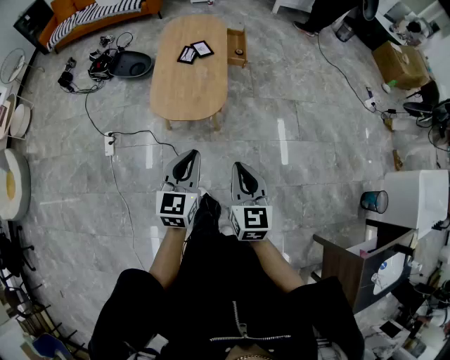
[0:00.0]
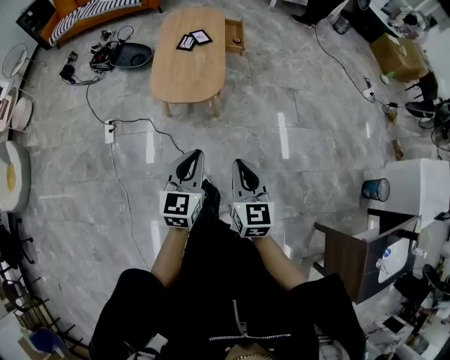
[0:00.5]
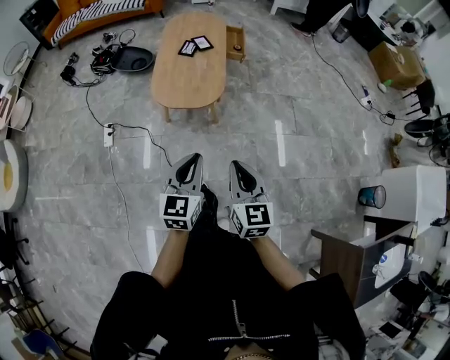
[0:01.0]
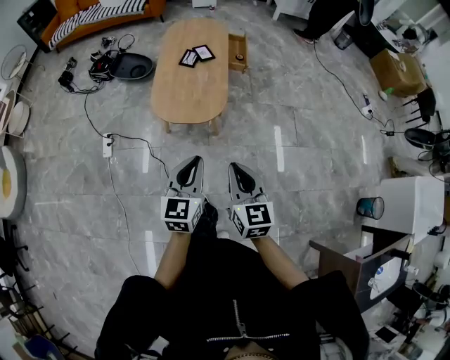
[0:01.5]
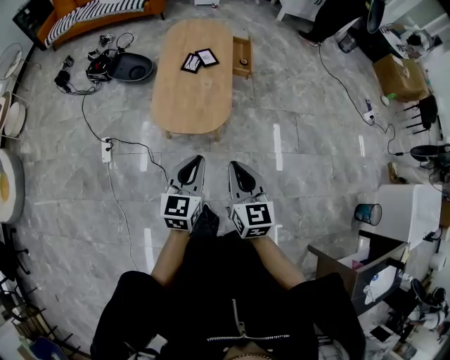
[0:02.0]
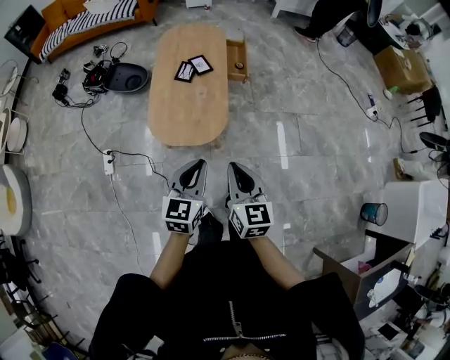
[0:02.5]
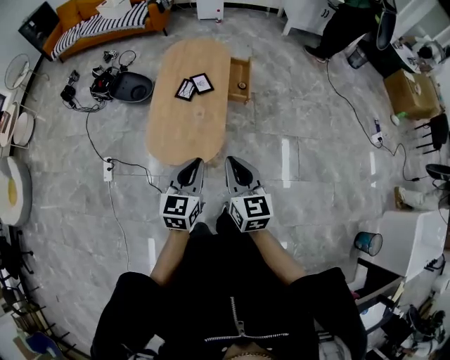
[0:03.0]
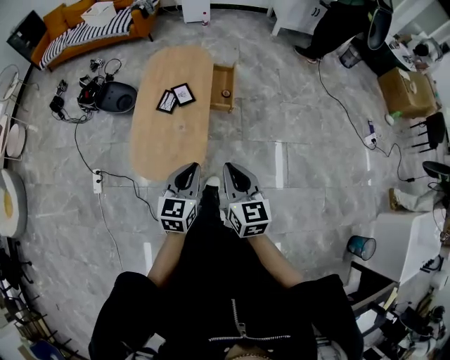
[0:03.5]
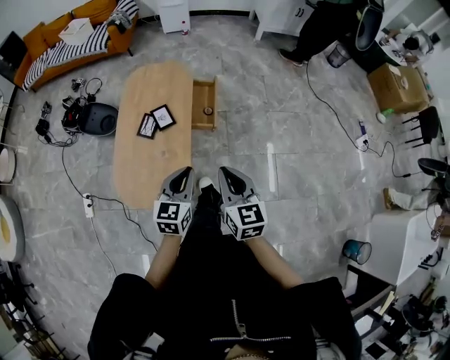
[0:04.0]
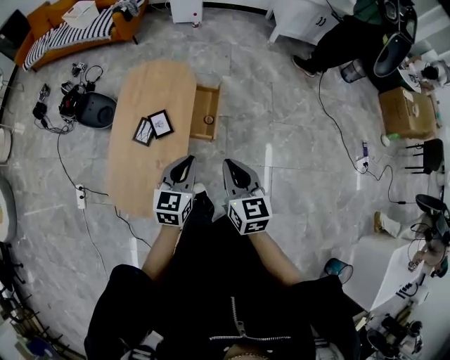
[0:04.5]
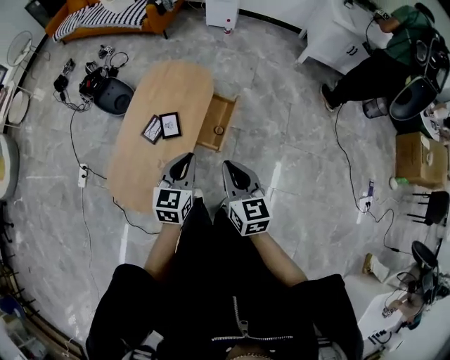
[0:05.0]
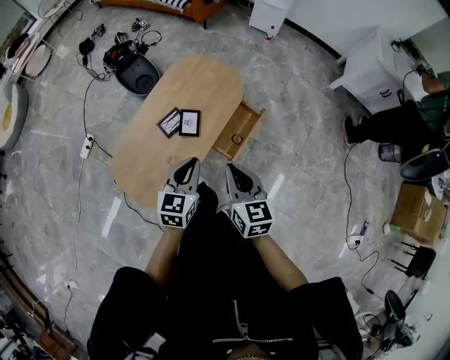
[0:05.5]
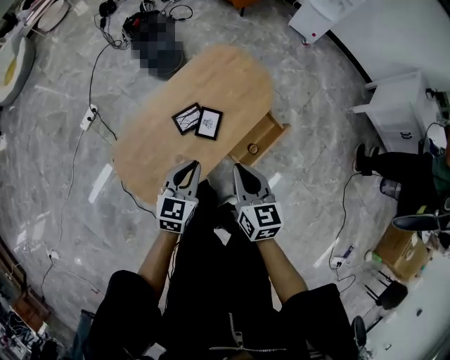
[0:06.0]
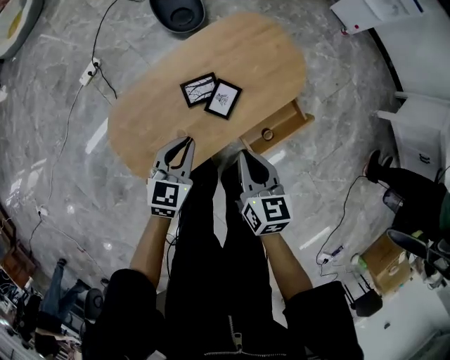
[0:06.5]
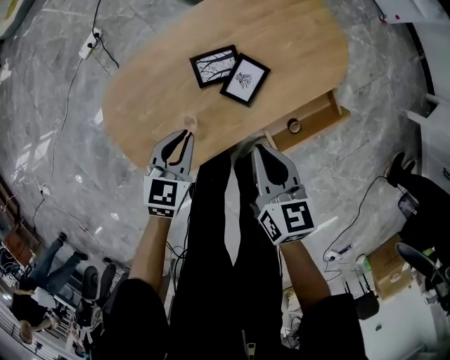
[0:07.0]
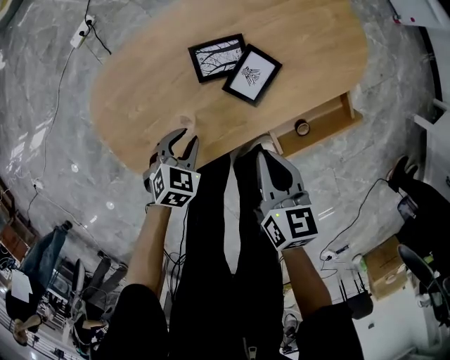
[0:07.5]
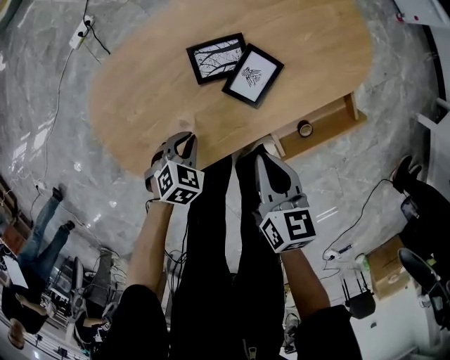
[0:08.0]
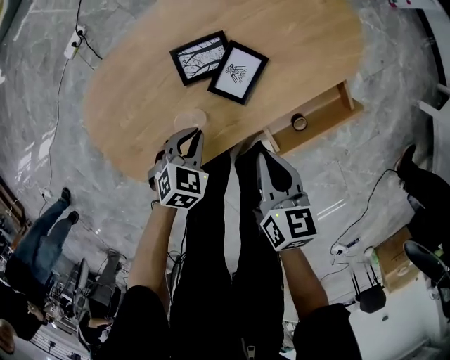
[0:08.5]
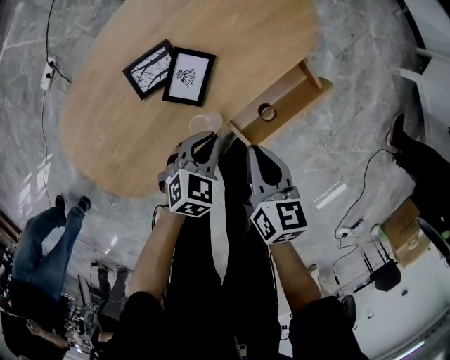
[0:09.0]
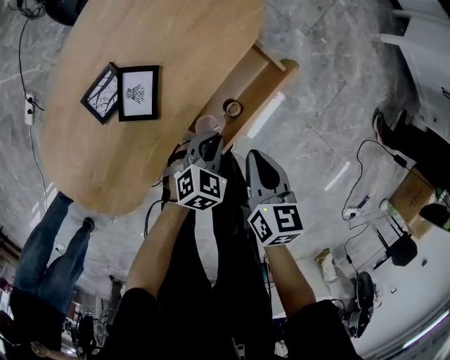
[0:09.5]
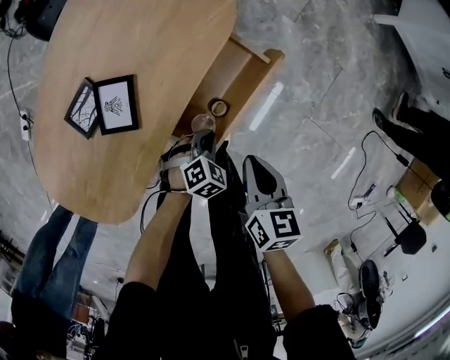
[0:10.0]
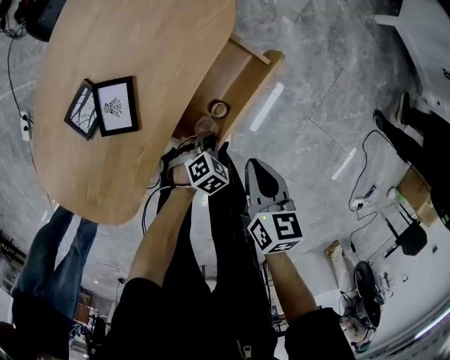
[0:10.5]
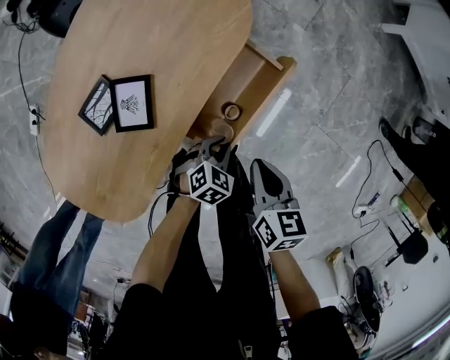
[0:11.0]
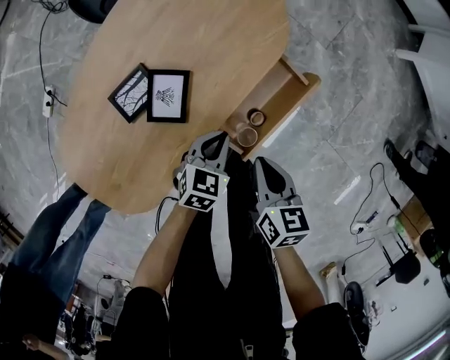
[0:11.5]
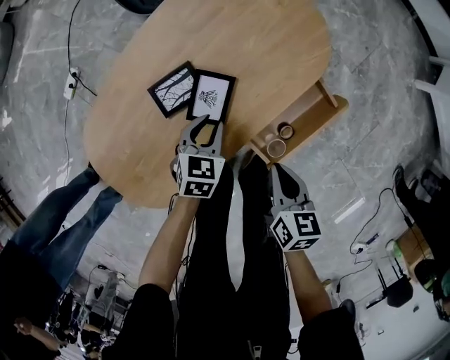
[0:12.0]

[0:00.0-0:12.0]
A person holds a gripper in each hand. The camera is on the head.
0:00.0 to 0:02.0: The right gripper heads forward and to the left, covering about 10 cm. The left gripper shifts about 10 cm forward.
0:02.0 to 0:04.0: Both grippers are carried forward and to the right, approximately 40 cm.
0:04.0 to 0:06.0: The left gripper changes place by approximately 30 cm, and changes its angle by roughly 40 degrees; the right gripper ends up roughly 35 cm from where it was, and swivels some 40 degrees.
0:06.0 to 0:08.0: The two grippers go about 30 cm downward. The right gripper swivels about 20 degrees. The left gripper tips its fingers downward by roughly 40 degrees.
0:08.0 to 0:10.0: The left gripper ends up some 35 cm from where it was, and rotates roughly 40 degrees. Meanwhile the right gripper changes place by some 25 cm, and rotates some 30 degrees.
0:10.0 to 0:12.0: The left gripper ends up approximately 25 cm from where it was, and changes its angle by some 50 degrees. The right gripper changes place by roughly 15 cm.

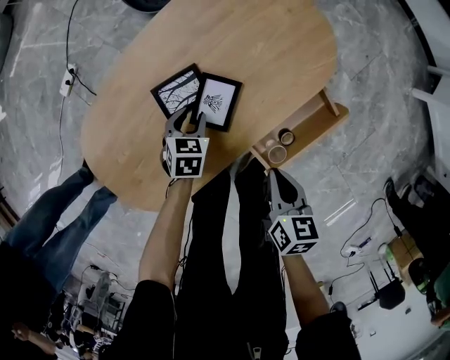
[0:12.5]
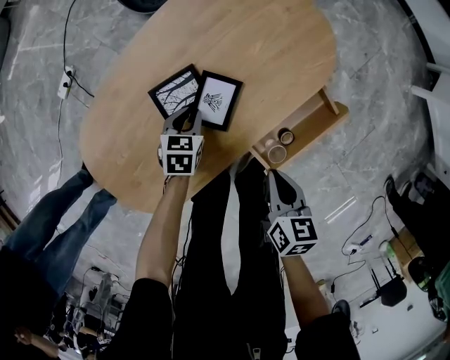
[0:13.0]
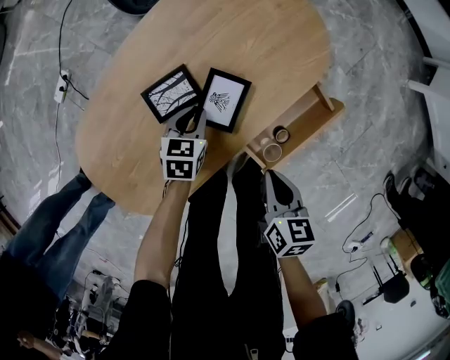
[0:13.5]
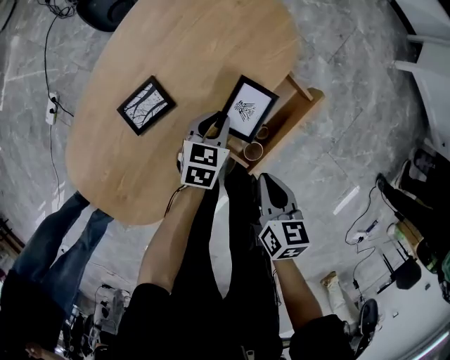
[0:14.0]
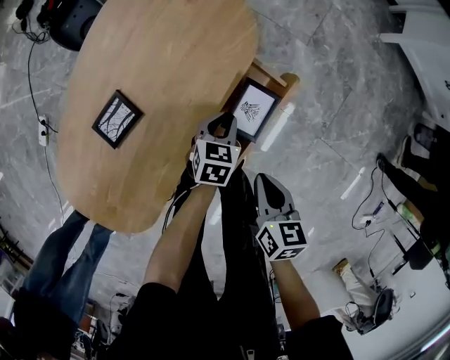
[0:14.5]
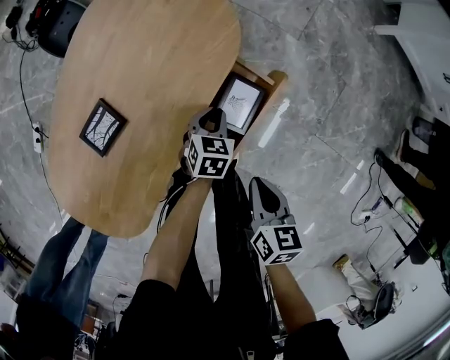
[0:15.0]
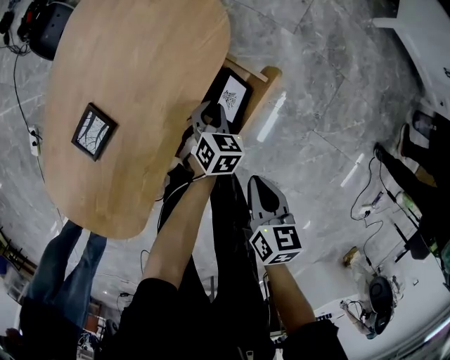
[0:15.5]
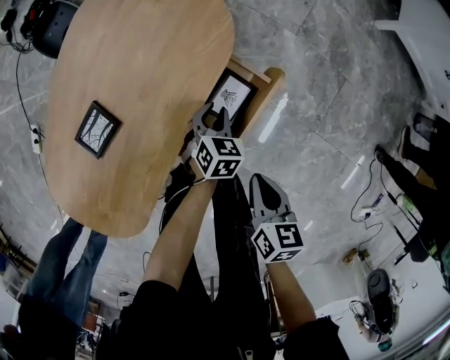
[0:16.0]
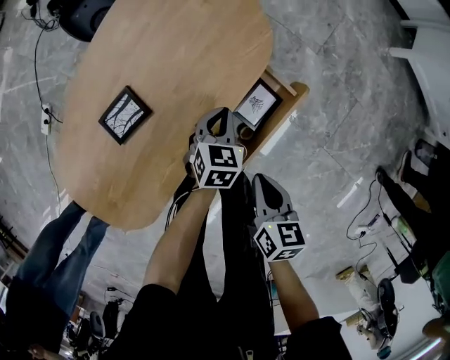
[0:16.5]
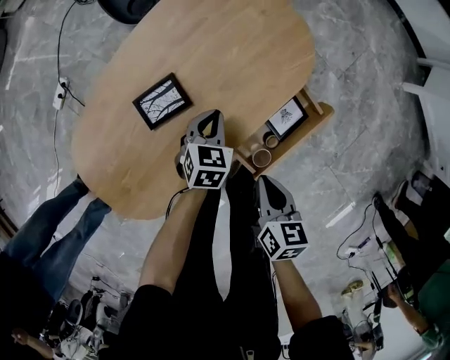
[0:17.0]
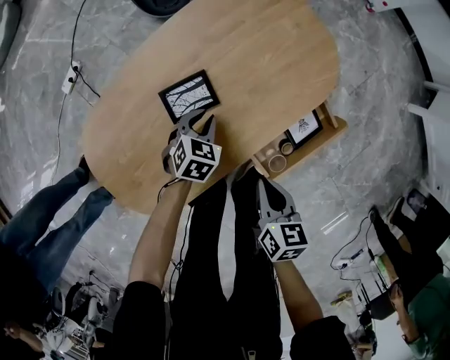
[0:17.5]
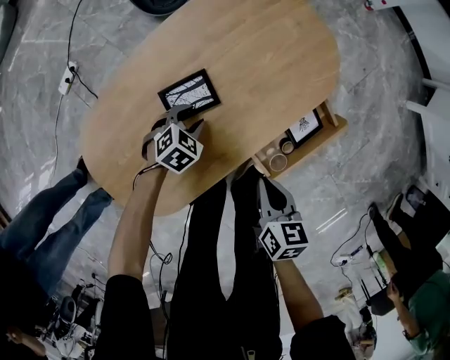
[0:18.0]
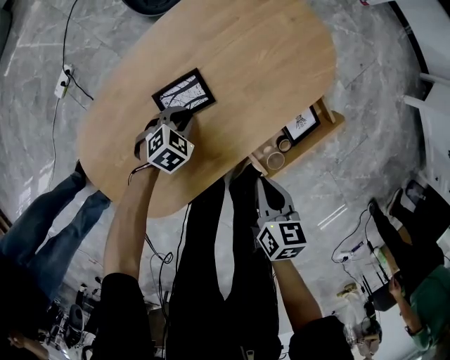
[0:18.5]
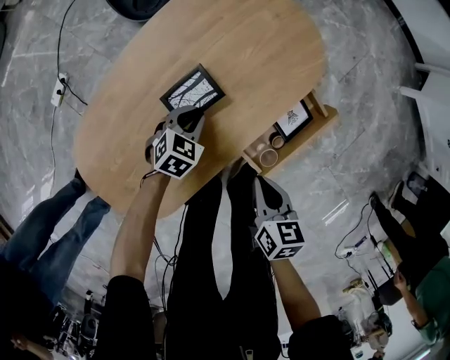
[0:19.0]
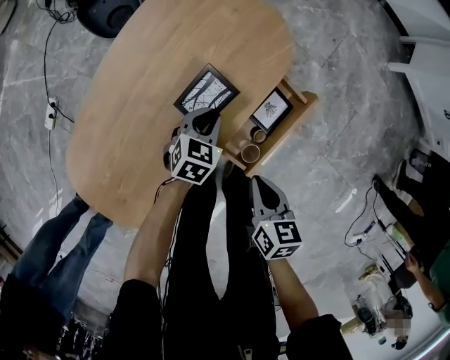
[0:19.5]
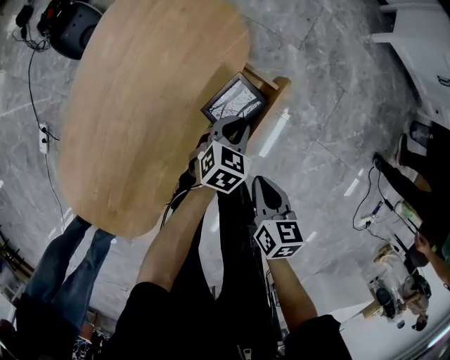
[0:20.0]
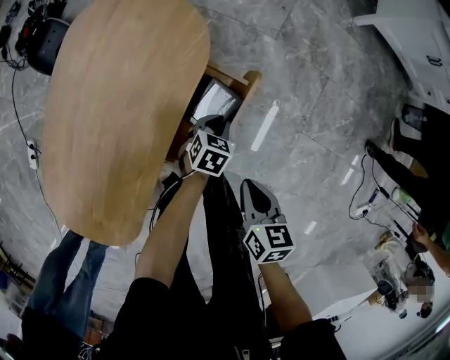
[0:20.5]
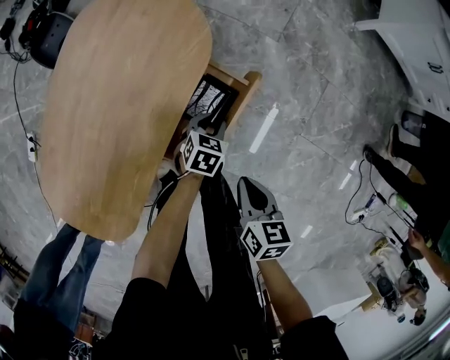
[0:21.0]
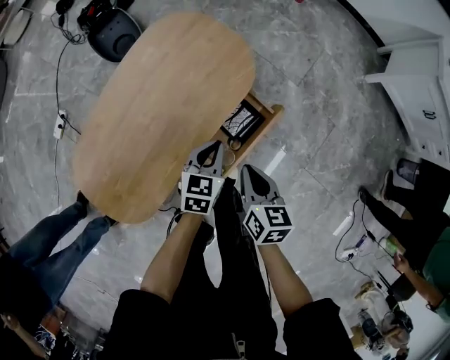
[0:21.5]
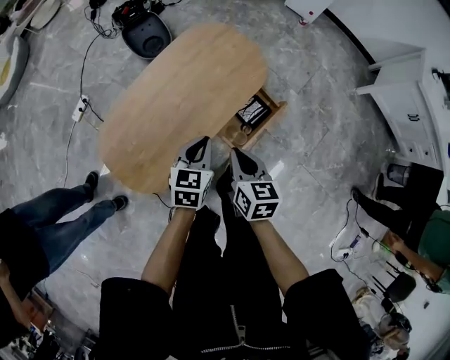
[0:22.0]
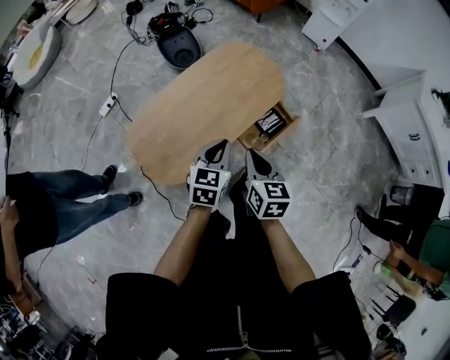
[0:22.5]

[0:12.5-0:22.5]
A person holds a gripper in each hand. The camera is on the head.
0:12.5 to 0:14.5: The left gripper shifts by approximately 30 cm, rotates approximately 30 degrees, and closes; the right gripper ends up some 10 cm from where it was.
0:14.5 to 0:16.5: The left gripper changes place by roughly 5 cm.
0:16.5 to 0:18.5: The right gripper moves to the left, about 15 cm. The left gripper moves to the left, about 25 cm, swivels roughly 20 degrees, and opens, then closes once more.
0:18.5 to 0:20.5: The left gripper travels upward and back again, roughly 5 cm each way. The right gripper shifts by some 20 cm, and changes its angle by some 20 degrees.
0:20.5 to 0:22.5: Both grippers move upward, about 40 cm. The right gripper swivels approximately 30 degrees. The left gripper turns by some 40 degrees.

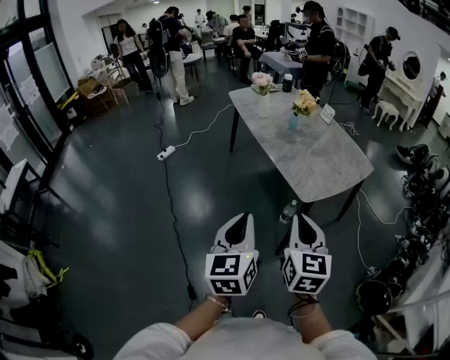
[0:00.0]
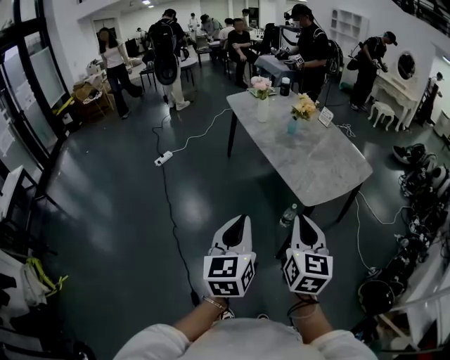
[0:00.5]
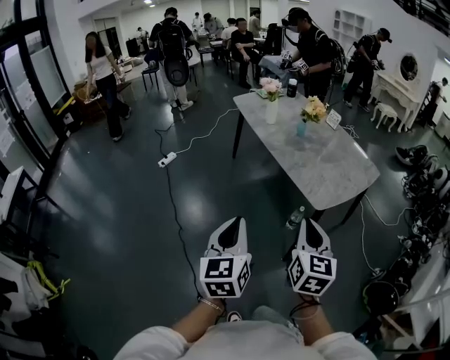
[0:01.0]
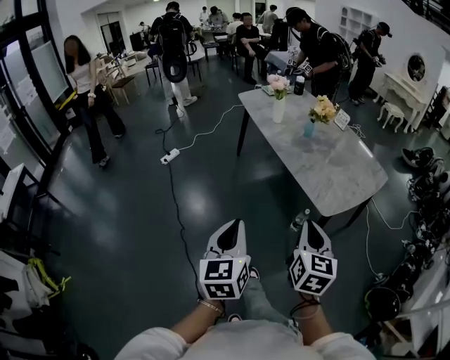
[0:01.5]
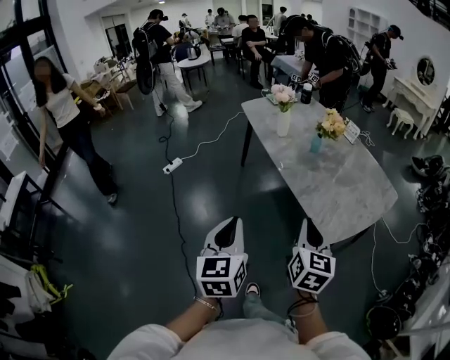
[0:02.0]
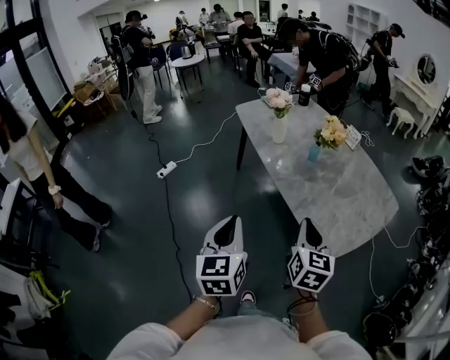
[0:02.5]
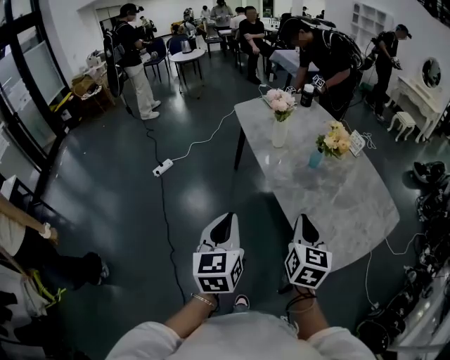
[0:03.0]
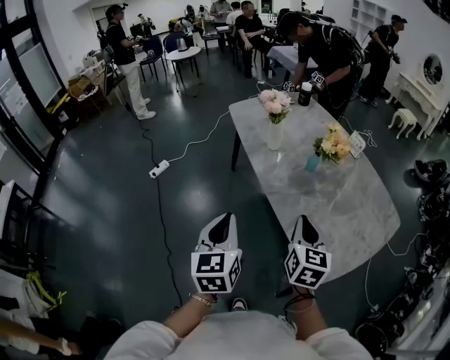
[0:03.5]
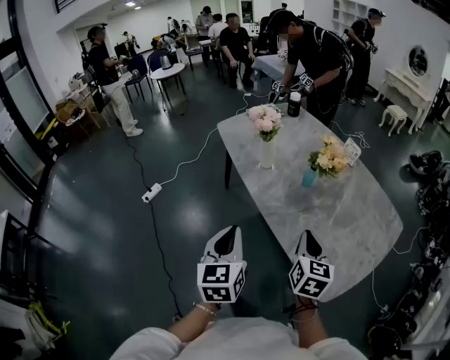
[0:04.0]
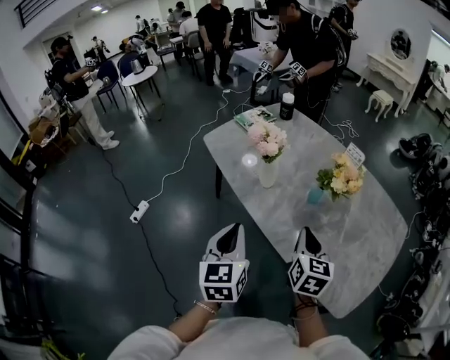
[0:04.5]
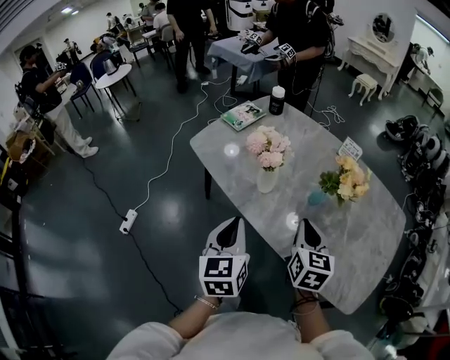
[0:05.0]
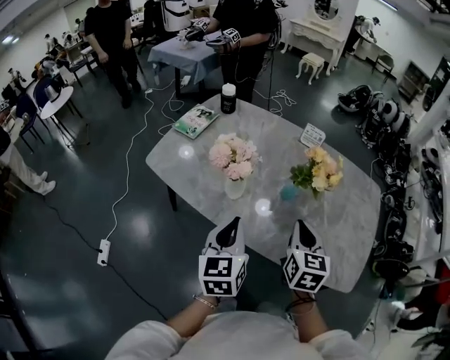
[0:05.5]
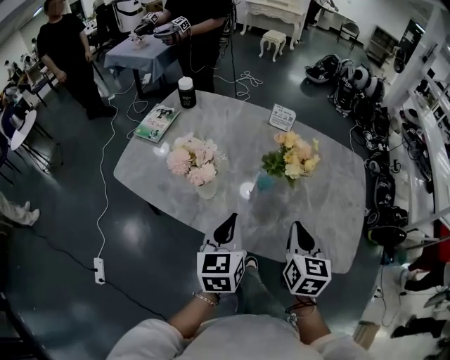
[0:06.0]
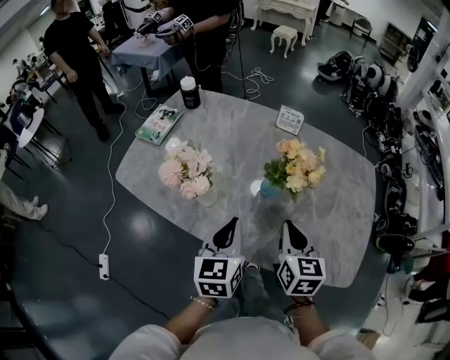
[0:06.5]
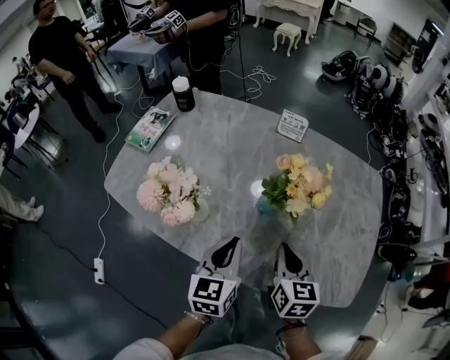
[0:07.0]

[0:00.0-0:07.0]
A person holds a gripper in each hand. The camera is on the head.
0:00.0 to 0:02.0: The left gripper heads forward and to the left, covering roughly 25 cm. Meanwhile the right gripper goes about 20 cm forward.
0:02.0 to 0:03.5: The grippers both shift forward by roughly 20 cm.
0:03.5 to 0:05.0: The left gripper travels forward by roughly 30 cm, and turns by about 20 degrees; the right gripper shifts approximately 25 cm forward and to the left, and swivels approximately 20 degrees.
0:05.0 to 0:07.0: The right gripper moves some 15 cm, while the left gripper ends up approximately 25 cm from where it was, and changes its angle by approximately 30 degrees.
